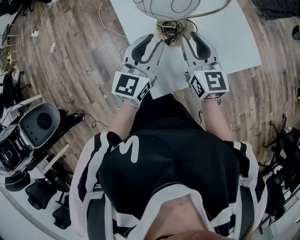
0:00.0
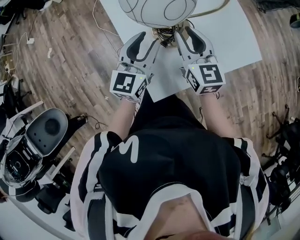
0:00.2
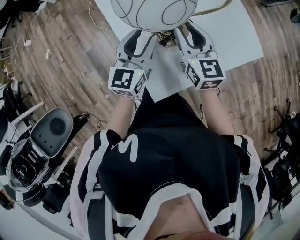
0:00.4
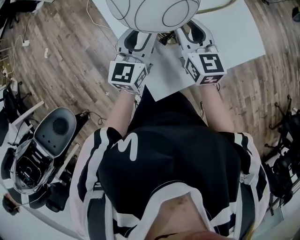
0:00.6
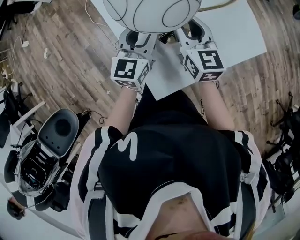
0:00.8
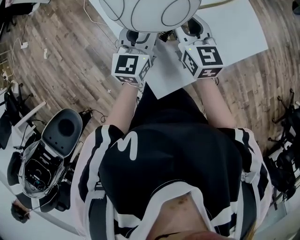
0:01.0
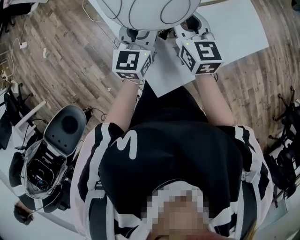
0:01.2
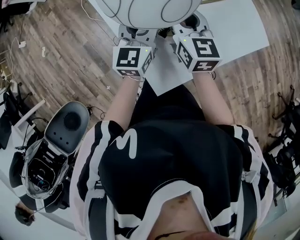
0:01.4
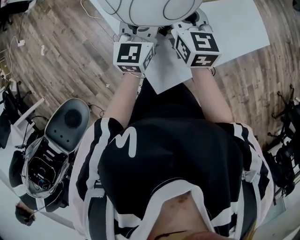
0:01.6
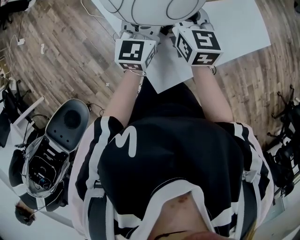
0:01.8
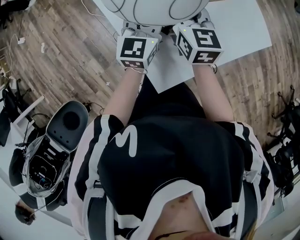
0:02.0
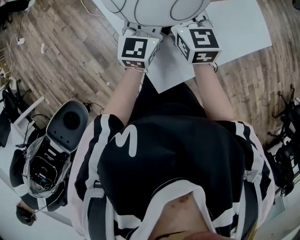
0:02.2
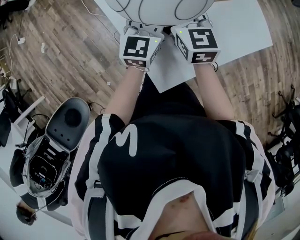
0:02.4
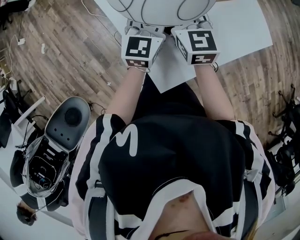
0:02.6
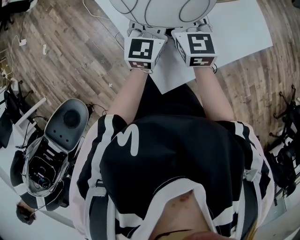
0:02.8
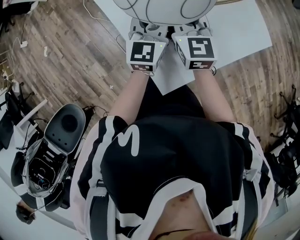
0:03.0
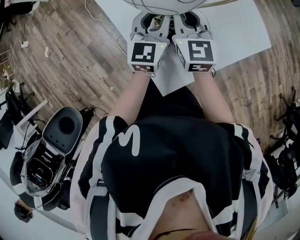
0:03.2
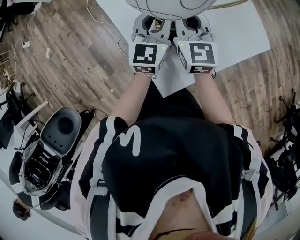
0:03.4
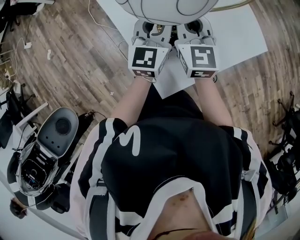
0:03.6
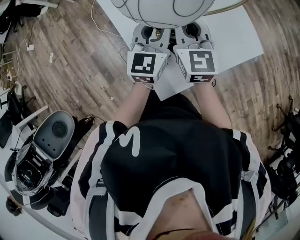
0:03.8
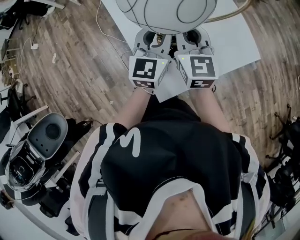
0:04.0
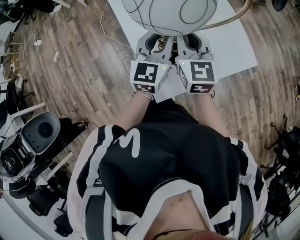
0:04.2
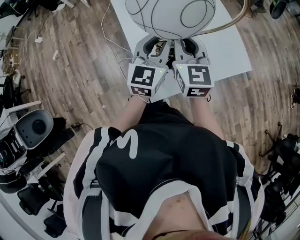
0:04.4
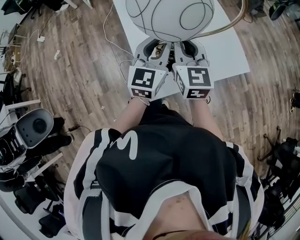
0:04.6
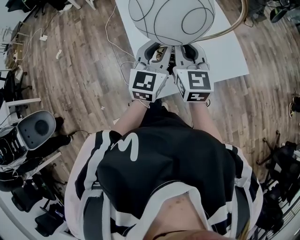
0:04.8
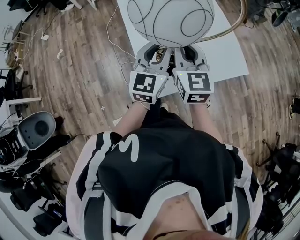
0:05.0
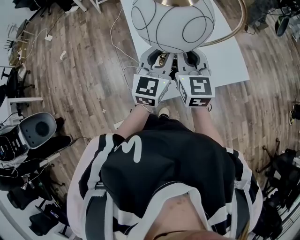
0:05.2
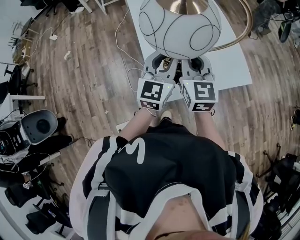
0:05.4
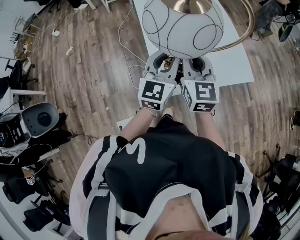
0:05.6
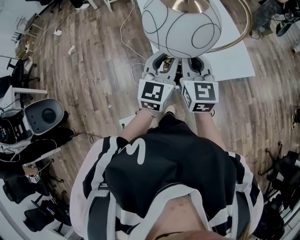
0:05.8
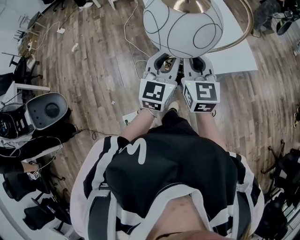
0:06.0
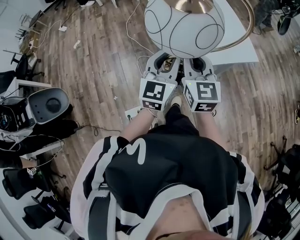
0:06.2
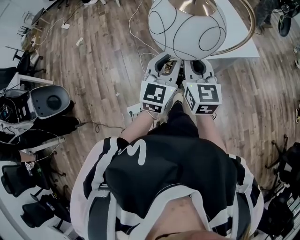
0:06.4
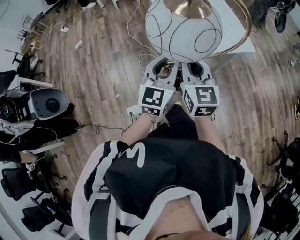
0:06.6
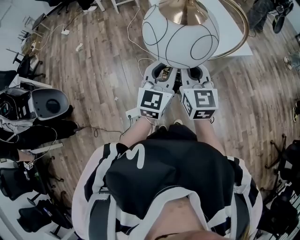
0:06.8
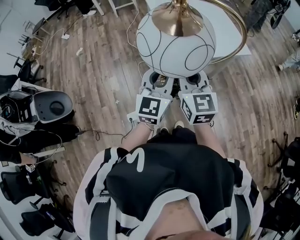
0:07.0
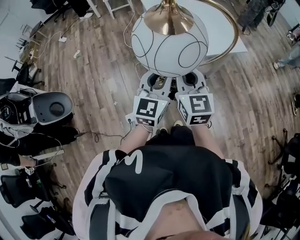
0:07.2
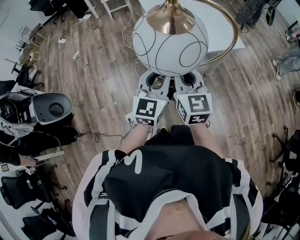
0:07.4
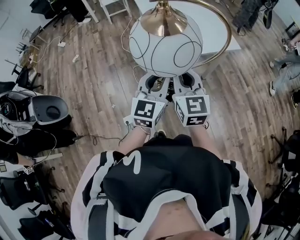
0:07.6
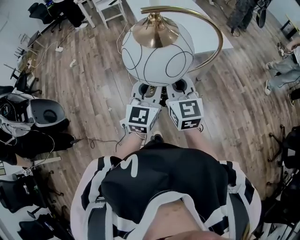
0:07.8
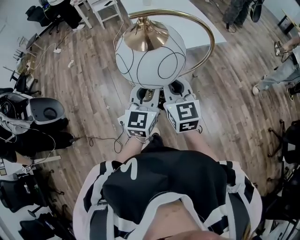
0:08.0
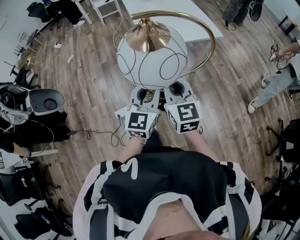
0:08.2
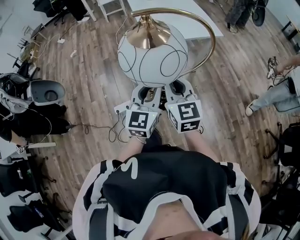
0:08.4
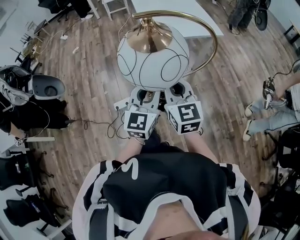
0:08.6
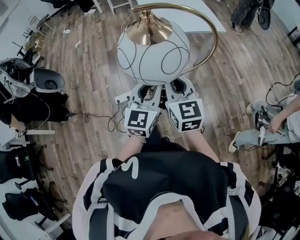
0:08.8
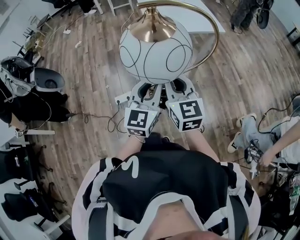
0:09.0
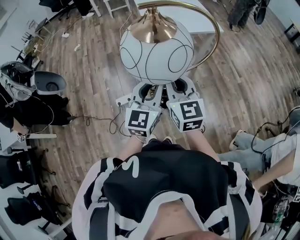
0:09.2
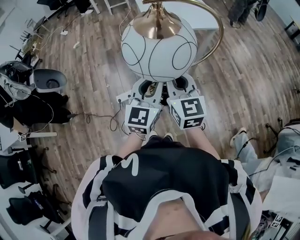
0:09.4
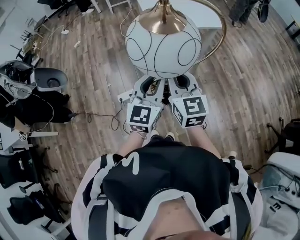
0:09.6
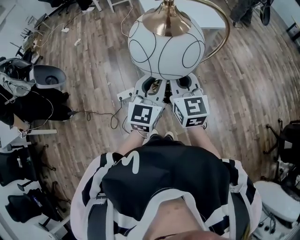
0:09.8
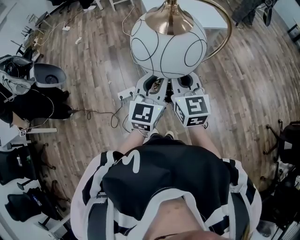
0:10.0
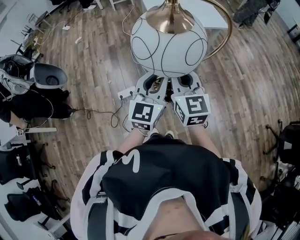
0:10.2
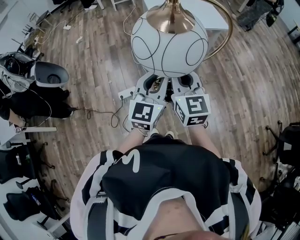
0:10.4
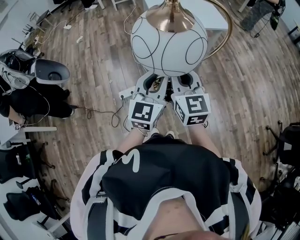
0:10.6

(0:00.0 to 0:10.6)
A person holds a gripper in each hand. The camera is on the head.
0:00.0 - 0:01.6: The right gripper shifts approximately 10 cm forward. The left gripper moves forward and downward, some 10 cm.
0:01.6 - 0:03.0: The right gripper closes its fingers.
0:03.0 - 0:04.6: The two grippers go about 15 cm upward and backward.
0:04.6 - 0:06.0: The grippers both shift backward by roughly 15 cm.
0:06.0 - 0:07.6: Both grippers move backward, roughly 25 cm.
0:07.6 - 0:09.0: The two grippers go some 25 cm backward.
0:09.0 - 0:10.6: The grippers make only small movements.

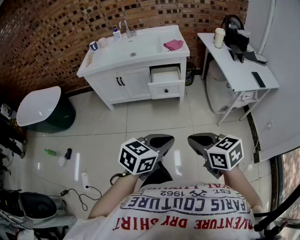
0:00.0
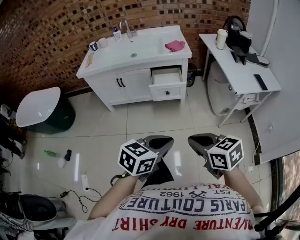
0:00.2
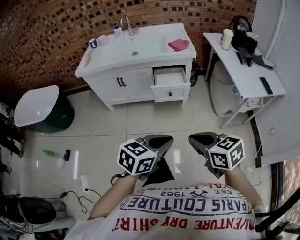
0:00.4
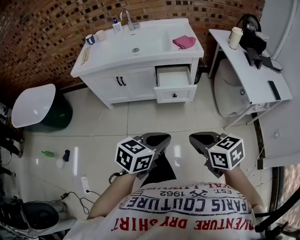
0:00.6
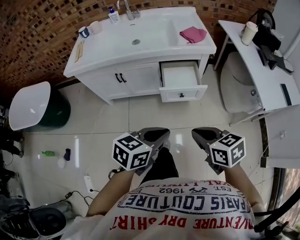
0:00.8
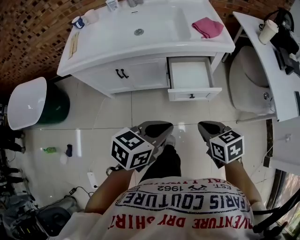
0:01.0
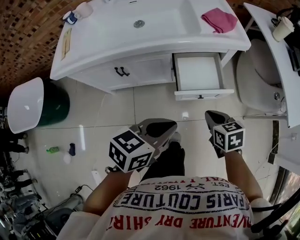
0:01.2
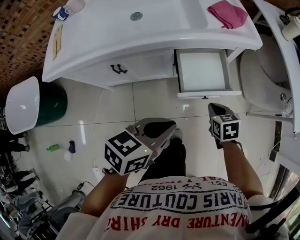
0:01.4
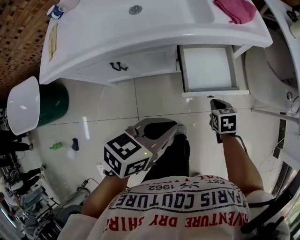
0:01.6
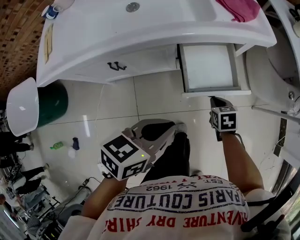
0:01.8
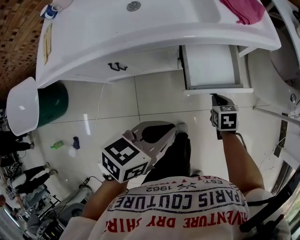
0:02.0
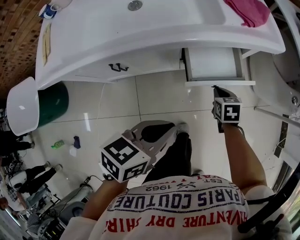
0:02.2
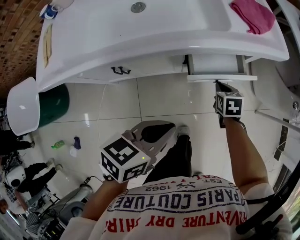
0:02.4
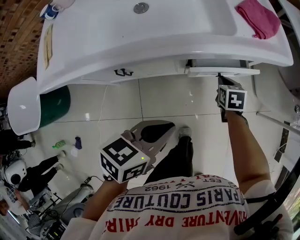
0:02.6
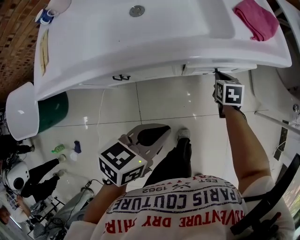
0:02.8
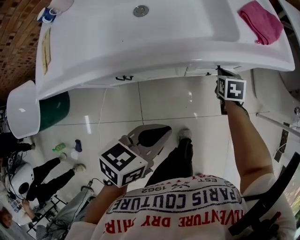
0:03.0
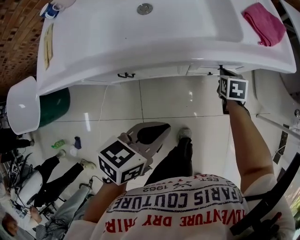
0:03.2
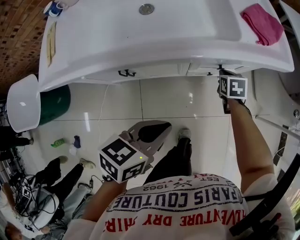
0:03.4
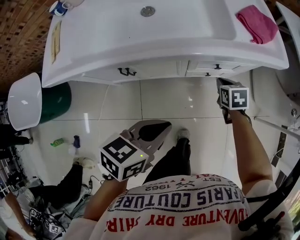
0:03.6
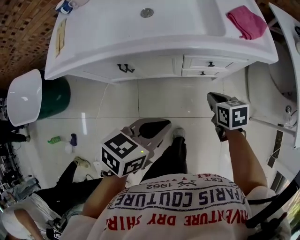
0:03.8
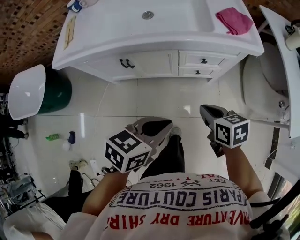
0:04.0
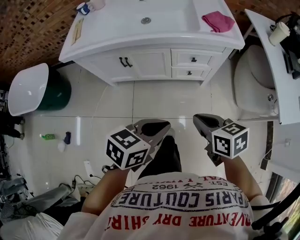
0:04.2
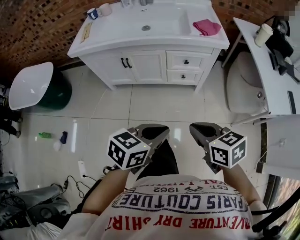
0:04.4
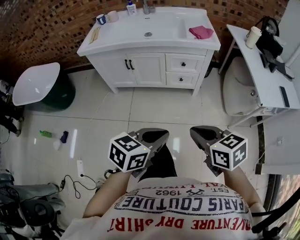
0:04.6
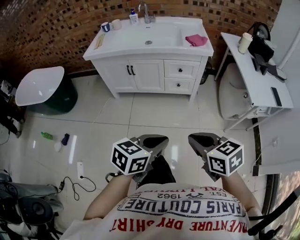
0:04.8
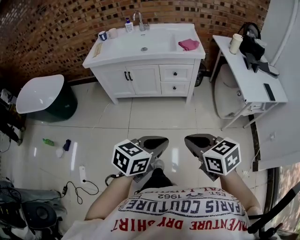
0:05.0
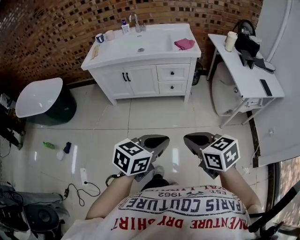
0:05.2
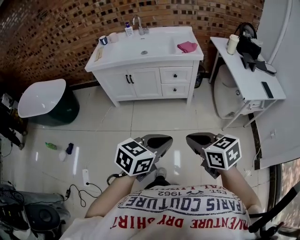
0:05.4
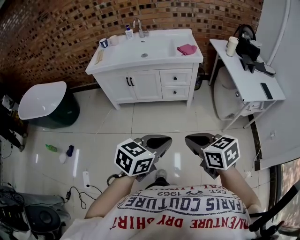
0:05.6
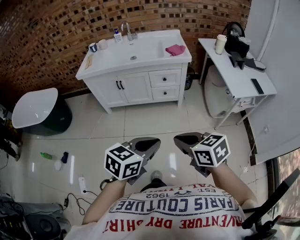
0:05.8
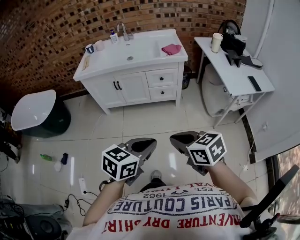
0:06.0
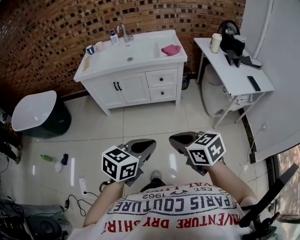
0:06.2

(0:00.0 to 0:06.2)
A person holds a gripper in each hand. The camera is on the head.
0:00.0 - 0:01.6: The pair of grippers is taken forward, about 50 cm. The right gripper heads downward, covering approximately 40 cm, and tips its fingers downward by roughly 30 degrees, while the left gripper changes its angle by approximately 20 degrees.
0:01.6 - 0:03.2: The right gripper is displaced forward and to the left by roughly 20 cm. Meanwhile the left gripper travels to the left by roughly 10 cm.
0:03.2 - 0:04.6: Both grippers are carried roughly 50 cm. The right gripper turns by some 40 degrees.
0:04.6 - 0:06.2: Both grippers move backward and upward, approximately 15 cm.

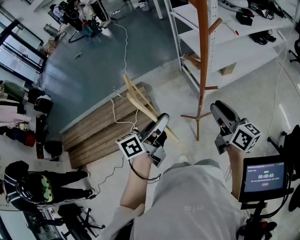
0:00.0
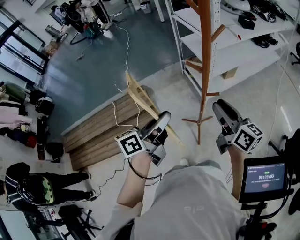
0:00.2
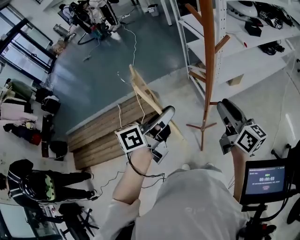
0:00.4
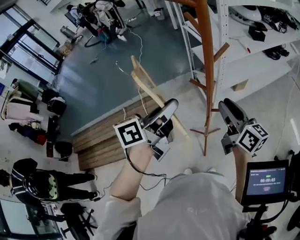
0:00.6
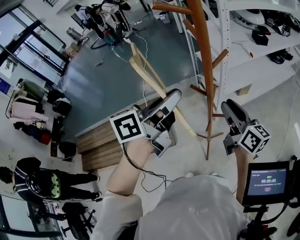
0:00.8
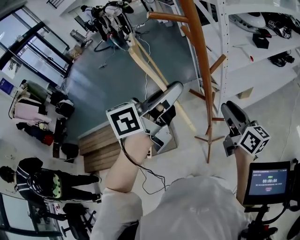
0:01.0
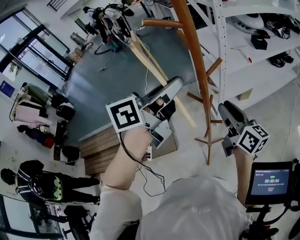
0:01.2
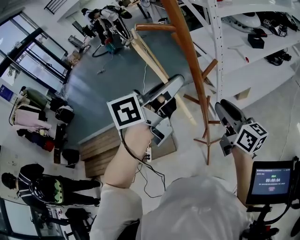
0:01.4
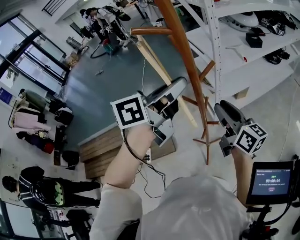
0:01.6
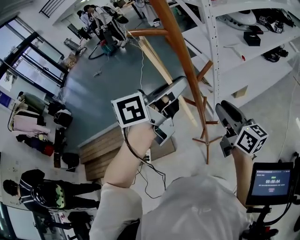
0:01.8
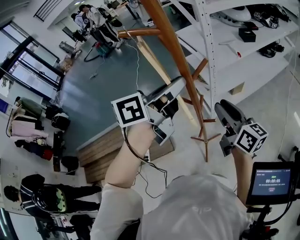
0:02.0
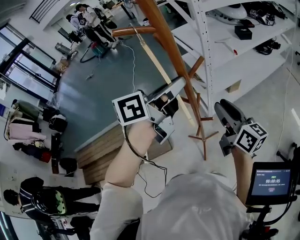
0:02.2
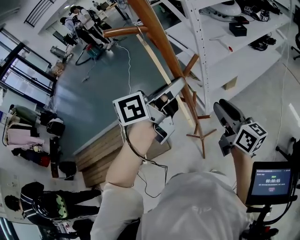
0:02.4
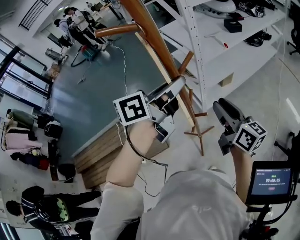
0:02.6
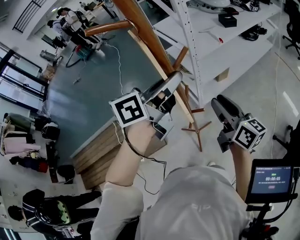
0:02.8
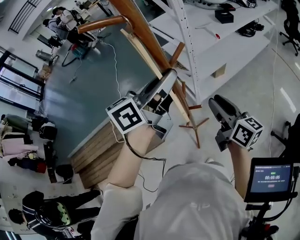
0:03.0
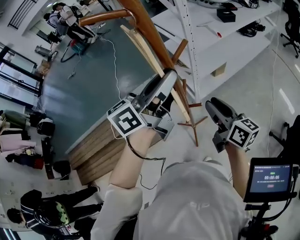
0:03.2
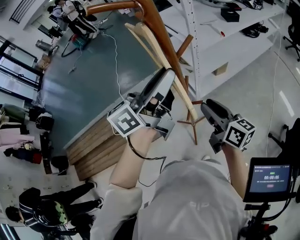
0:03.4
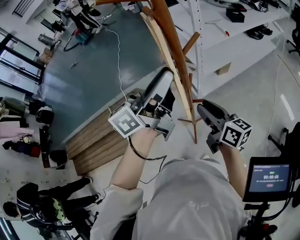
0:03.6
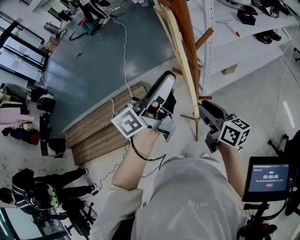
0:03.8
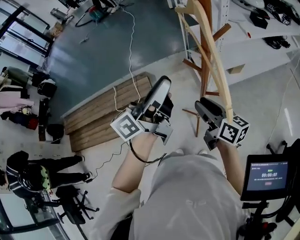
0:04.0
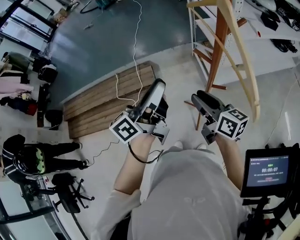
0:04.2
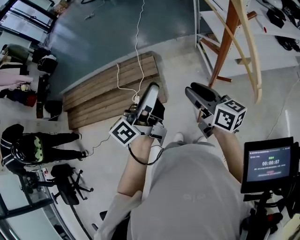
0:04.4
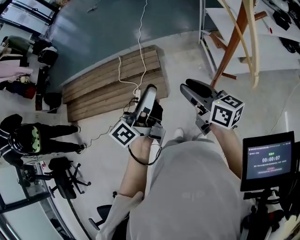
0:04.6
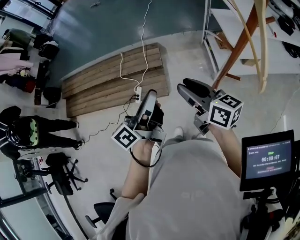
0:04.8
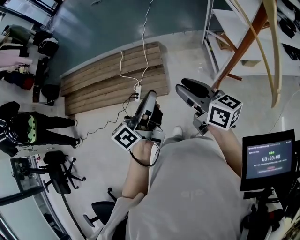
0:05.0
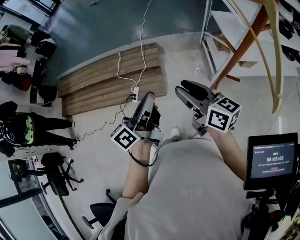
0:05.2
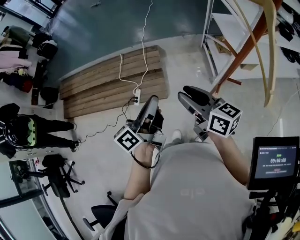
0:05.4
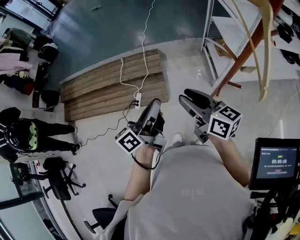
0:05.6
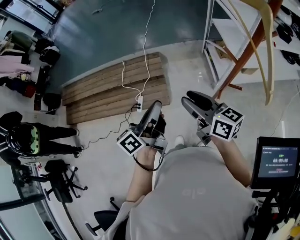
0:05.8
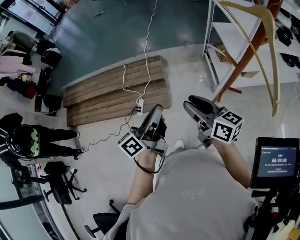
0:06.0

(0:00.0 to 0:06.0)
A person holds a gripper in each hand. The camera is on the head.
0:00.0 - 0:01.6: The right gripper travels forward and upward by some 15 cm. Meanwhile the left gripper moves upward, forward and to the right, some 30 cm.
0:01.6 - 0:03.0: The right gripper moves downward and to the right, approximately 10 cm. Meanwhile the left gripper moves downward, approximately 5 cm.
0:03.0 - 0:04.4: The left gripper moves approximately 30 cm, and turns by roughly 40 degrees; the right gripper moves approximately 25 cm, and swivels roughly 30 degrees.
0:04.4 - 0:06.0: The right gripper moves to the left, approximately 10 cm. The left gripper goes some 15 cm to the left and downward, and closes.

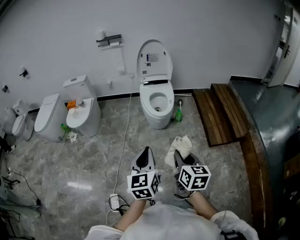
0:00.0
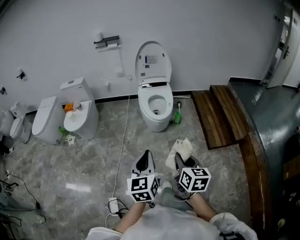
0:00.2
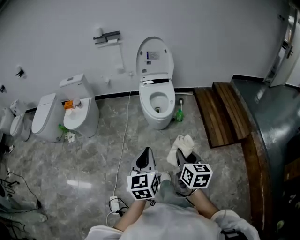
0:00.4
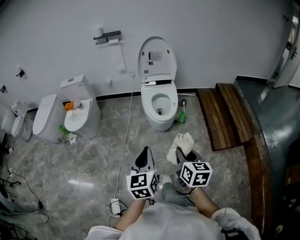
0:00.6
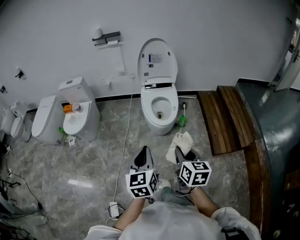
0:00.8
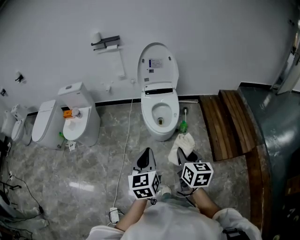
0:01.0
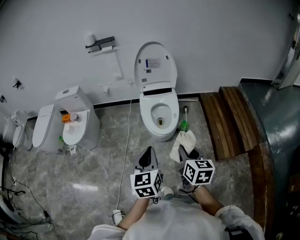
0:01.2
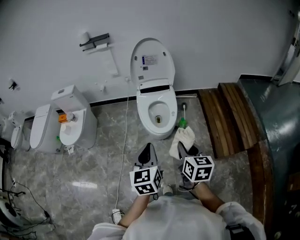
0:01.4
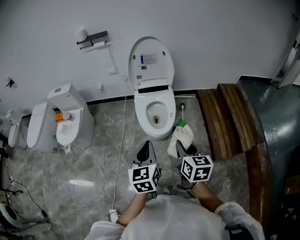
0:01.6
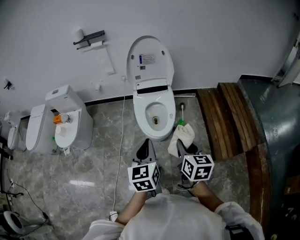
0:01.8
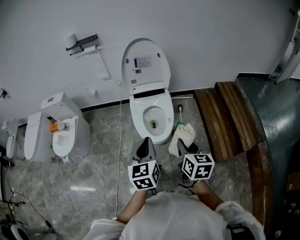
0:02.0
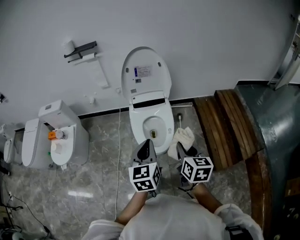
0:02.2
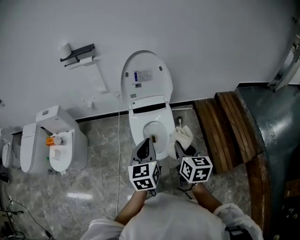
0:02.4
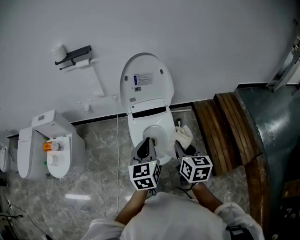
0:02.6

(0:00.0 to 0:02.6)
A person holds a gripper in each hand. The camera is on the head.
0:00.0 - 0:01.2: The two grippers go about 25 cm forward.
0:01.2 - 0:02.6: The grippers both shift forward by roughly 35 cm.
